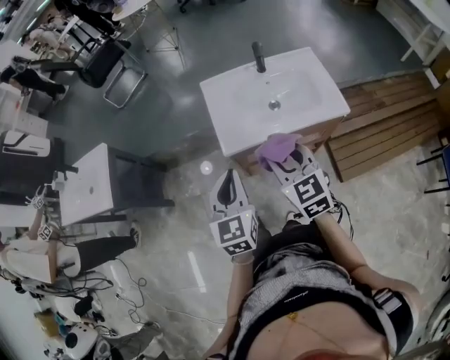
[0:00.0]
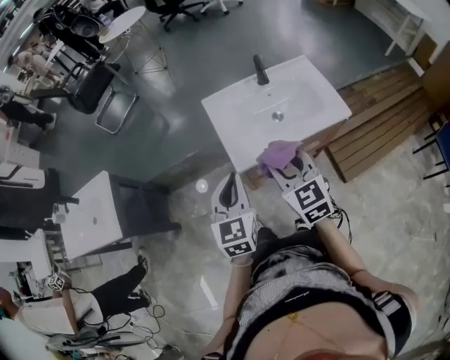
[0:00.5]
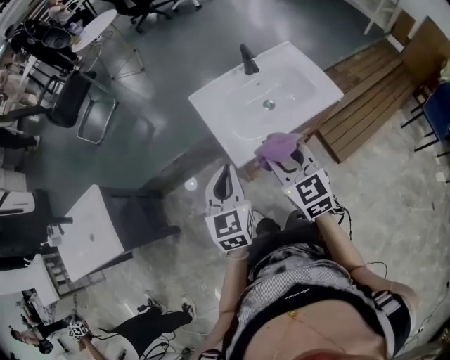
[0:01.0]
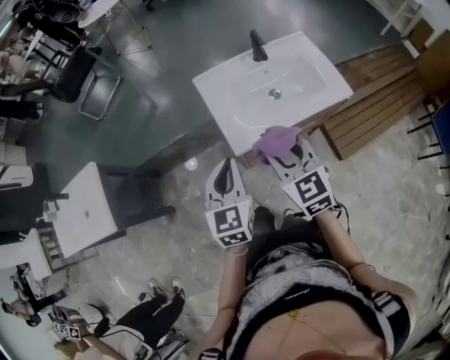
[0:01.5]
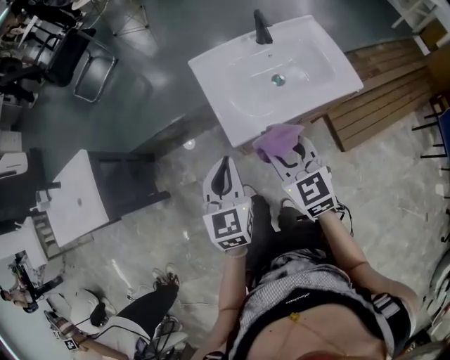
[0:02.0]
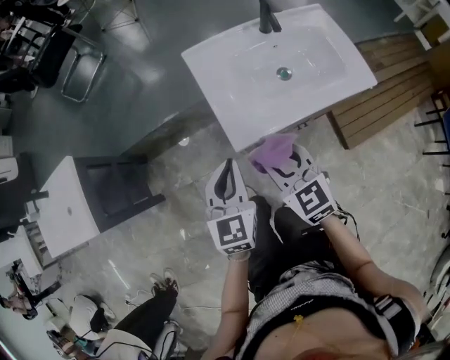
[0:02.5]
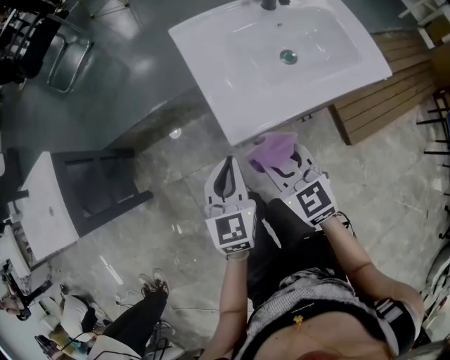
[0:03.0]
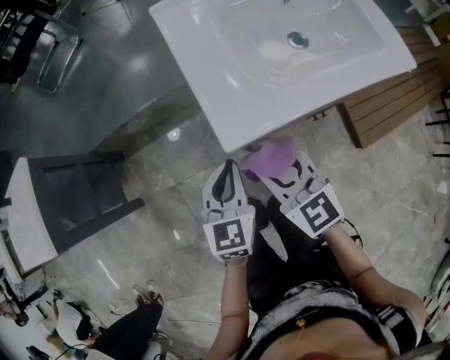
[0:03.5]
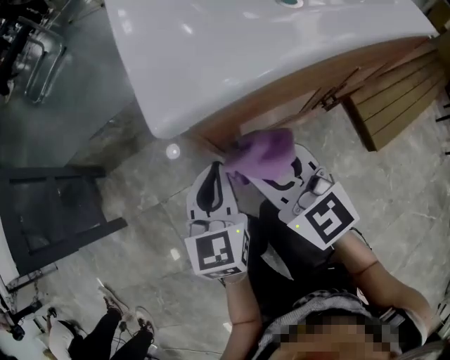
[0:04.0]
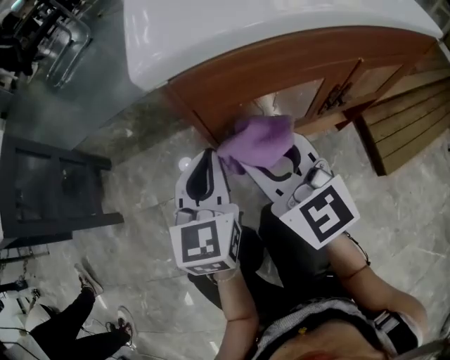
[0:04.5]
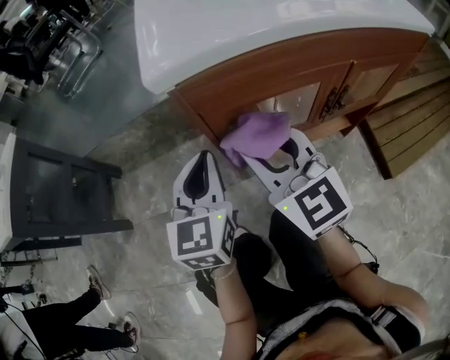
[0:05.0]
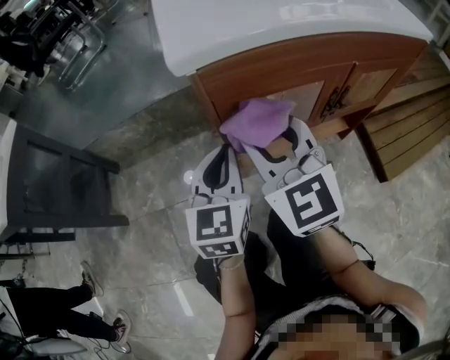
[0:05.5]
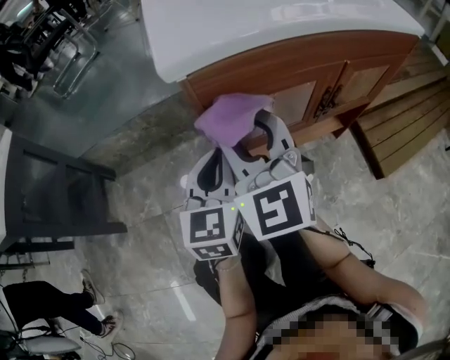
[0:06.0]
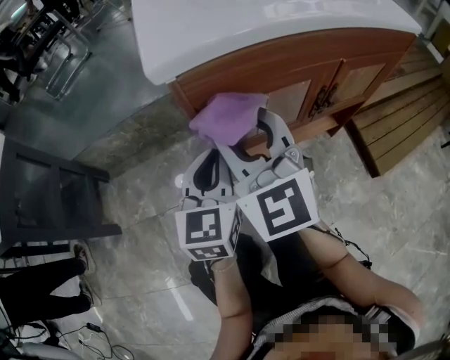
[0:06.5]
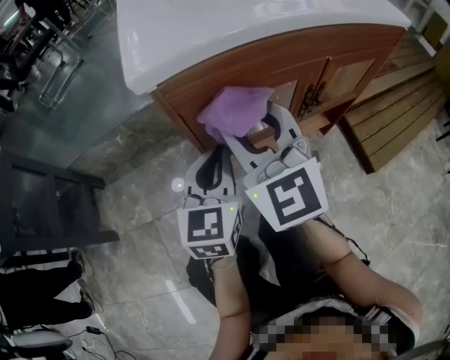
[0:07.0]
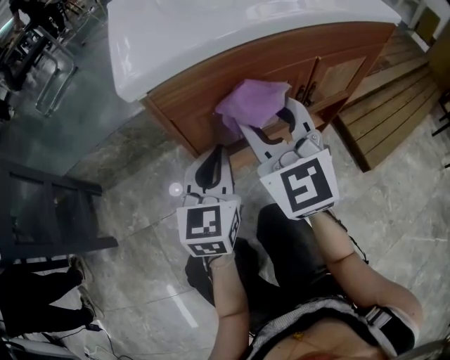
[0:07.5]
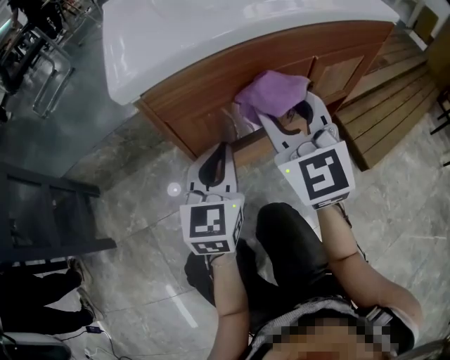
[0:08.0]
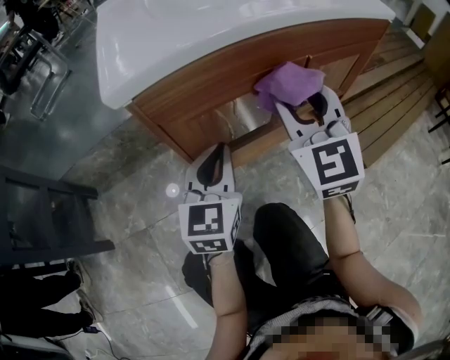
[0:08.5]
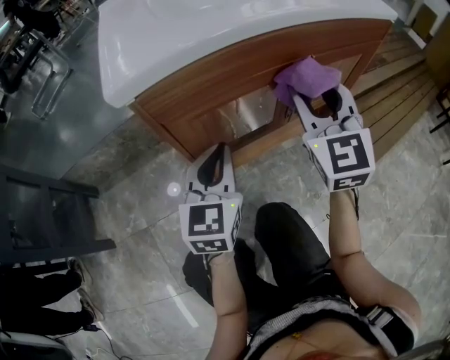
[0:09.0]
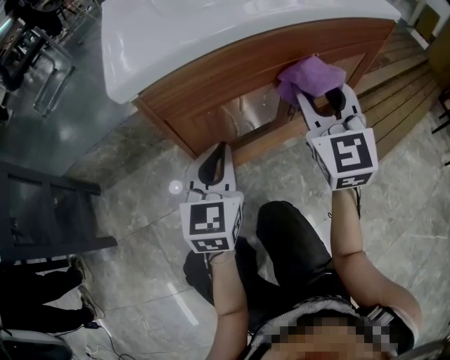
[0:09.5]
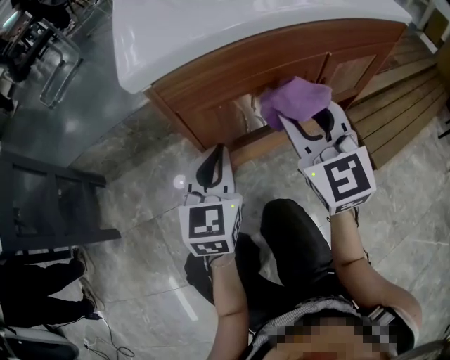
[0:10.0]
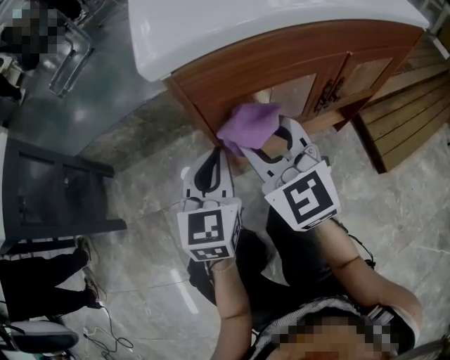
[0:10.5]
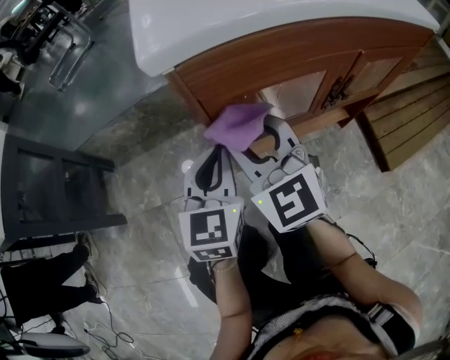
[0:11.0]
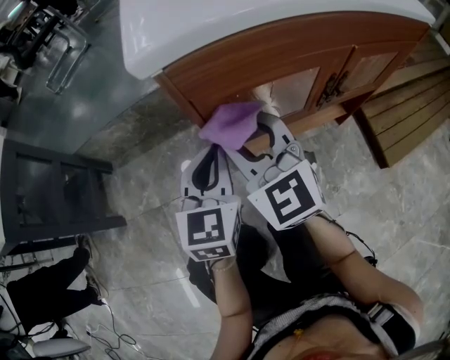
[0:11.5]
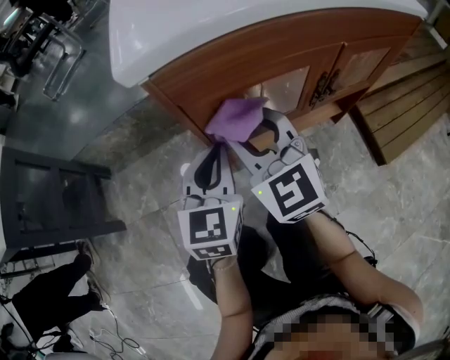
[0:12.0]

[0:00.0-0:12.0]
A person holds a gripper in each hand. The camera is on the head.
0:00.0 to 0:02.0: The left gripper heads forward, downward and to the left, covering approximately 10 cm, while the right gripper shifts roughly 10 cm to the left and downward.
0:02.0 to 0:04.0: Both grippers move downward, approximately 40 cm.
0:04.0 to 0:06.0: The right gripper shifts by about 5 cm, and changes its angle by roughly 30 degrees.
0:06.0 to 0:08.0: The left gripper goes about 5 cm to the right. The right gripper moves to the right, about 15 cm.
0:08.0 to 0:10.0: The right gripper reaches approximately 10 cm to the right, then returns.
0:10.0 to 0:12.0: The right gripper heads to the left, covering approximately 10 cm.

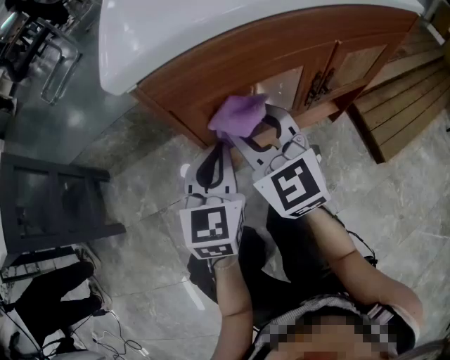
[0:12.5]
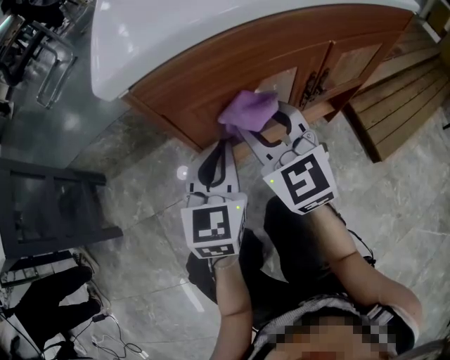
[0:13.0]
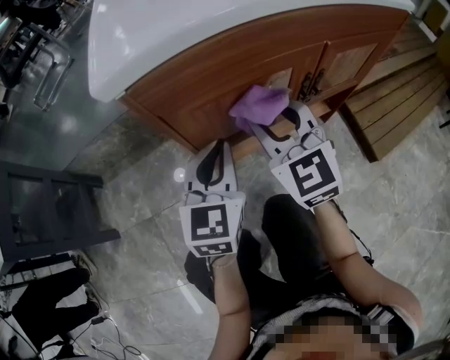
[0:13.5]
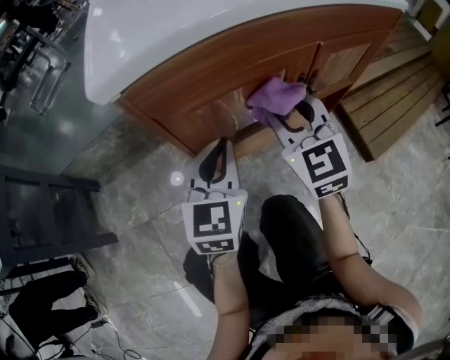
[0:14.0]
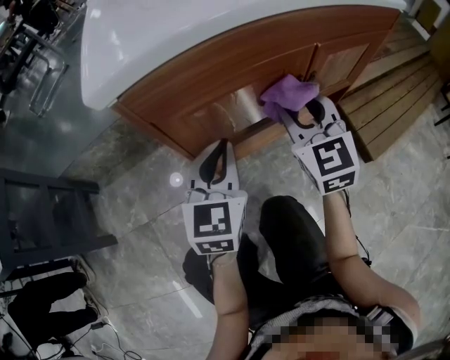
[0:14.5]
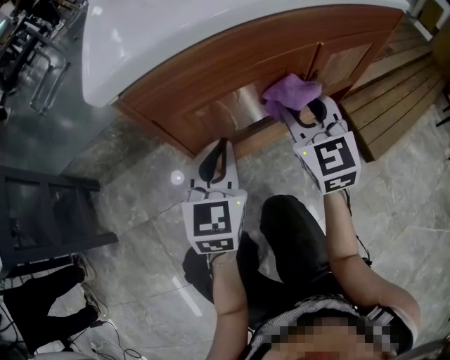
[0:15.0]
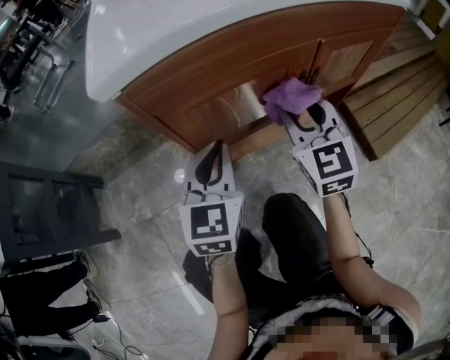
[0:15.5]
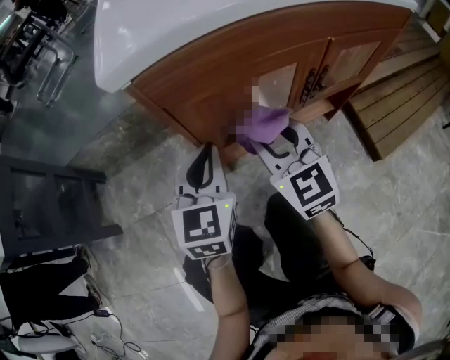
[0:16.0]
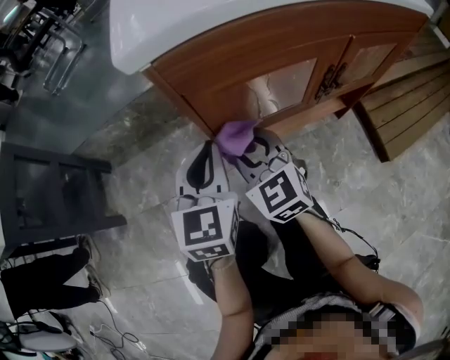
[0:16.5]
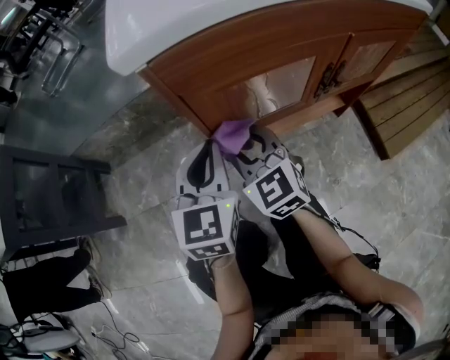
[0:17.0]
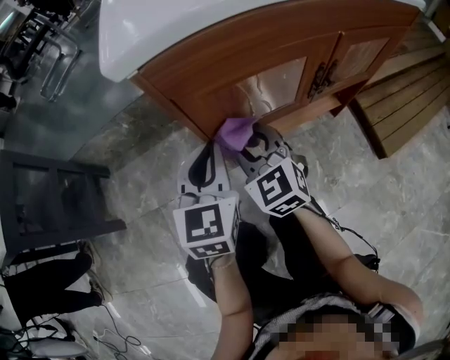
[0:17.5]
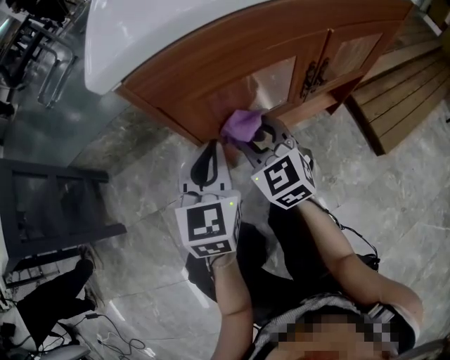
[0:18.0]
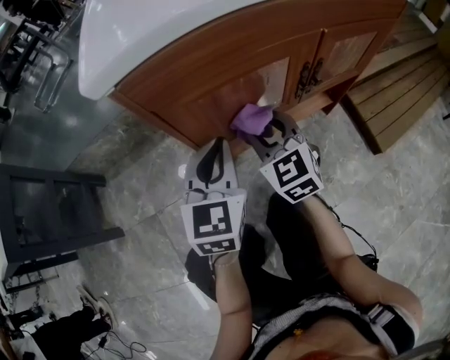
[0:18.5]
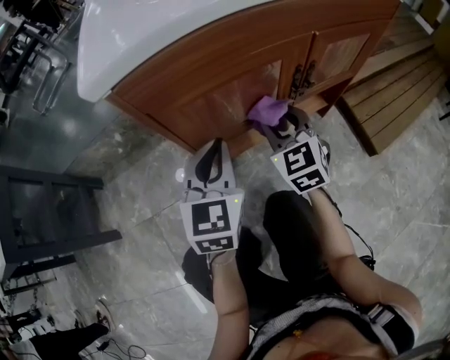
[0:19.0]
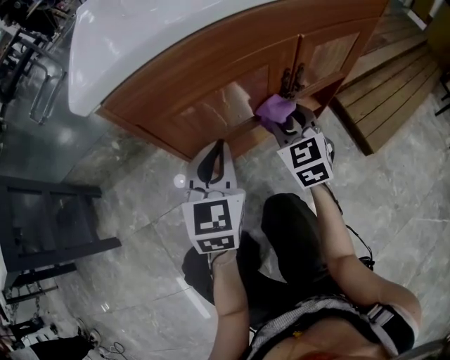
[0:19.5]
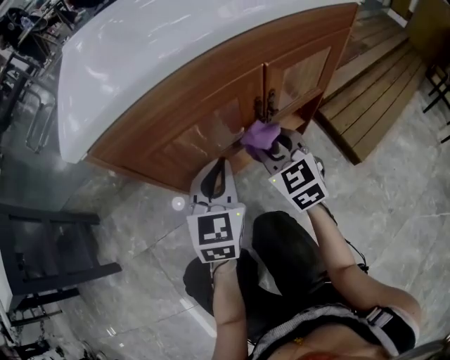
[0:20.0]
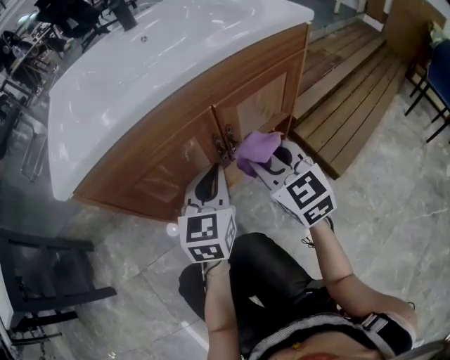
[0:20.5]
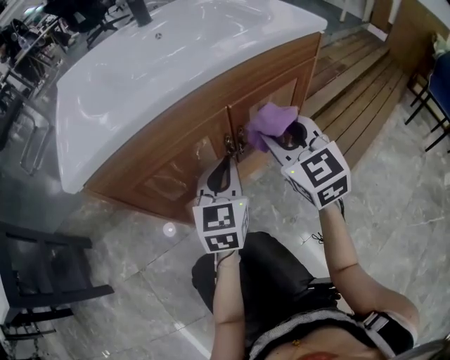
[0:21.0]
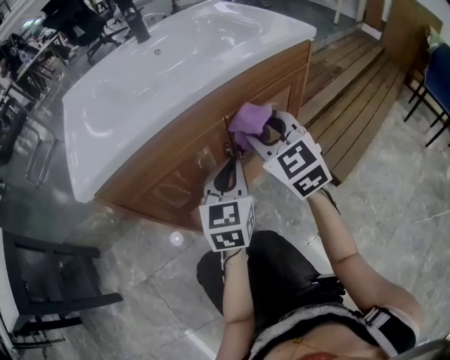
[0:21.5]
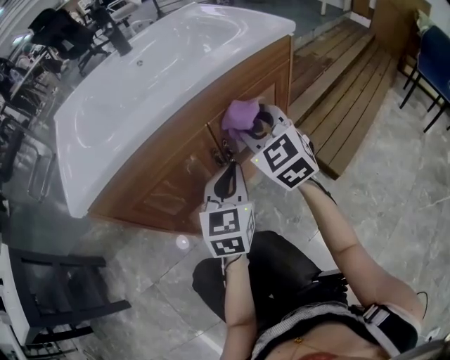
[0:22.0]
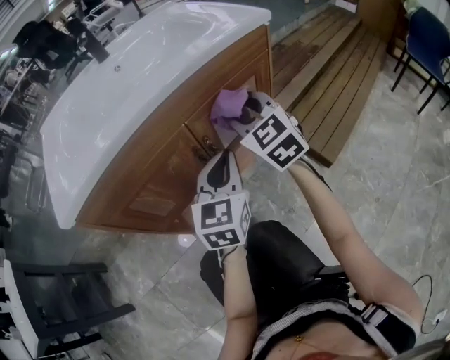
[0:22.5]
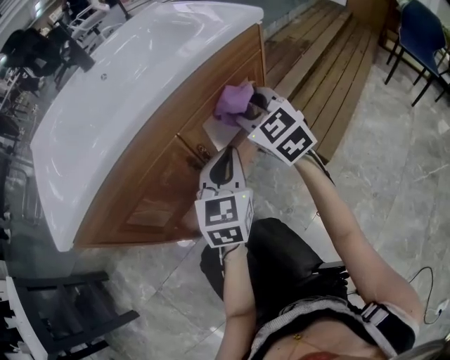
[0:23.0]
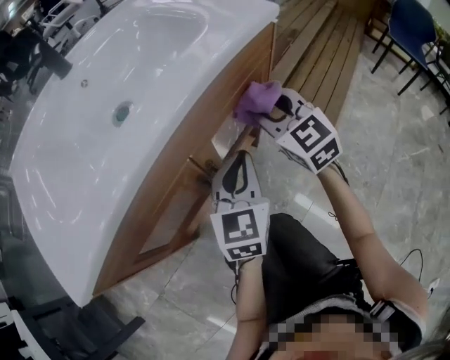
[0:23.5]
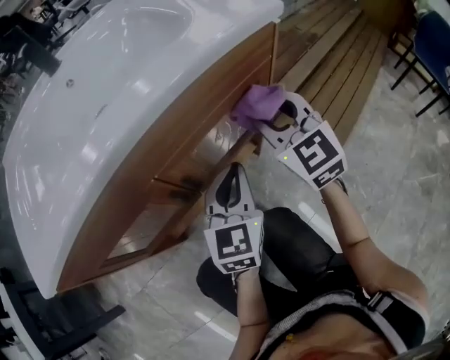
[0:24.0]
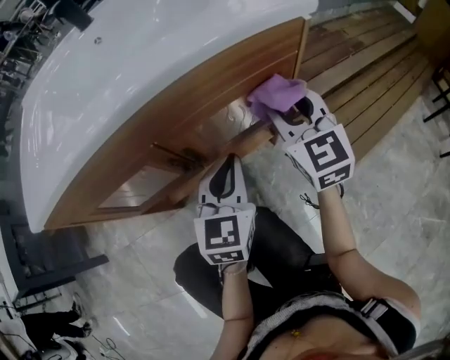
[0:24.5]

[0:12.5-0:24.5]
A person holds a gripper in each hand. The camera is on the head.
0:12.5 to 0:14.5: The right gripper moves to the right, about 15 cm.
0:14.5 to 0:16.5: The left gripper heads to the left, covering approximately 10 cm. The right gripper heads to the left and downward, covering about 20 cm, and changes its angle by some 20 degrees.
0:16.5 to 0:18.5: The right gripper shifts approximately 10 cm to the right. The left gripper shifts some 5 cm to the right.
0:18.5 to 0:20.5: The right gripper is displaced to the right and upward by some 20 cm; the left gripper shifts about 15 cm to the right.
0:20.5 to 0:22.5: The right gripper moves forward and upward, roughly 10 cm; the left gripper travels to the right by approximately 10 cm.
0:22.5 to 0:24.5: The left gripper changes place by about 5 cm; the right gripper shifts approximately 10 cm to the right and forward.

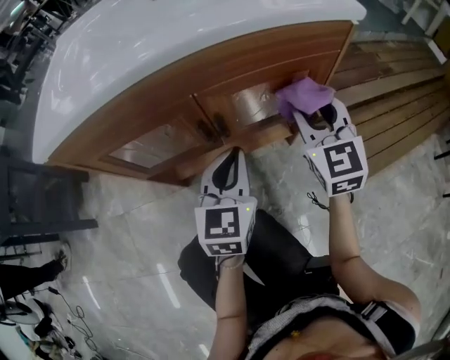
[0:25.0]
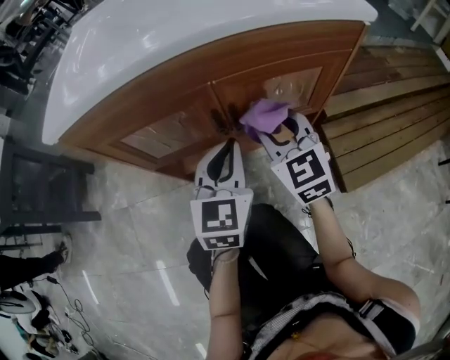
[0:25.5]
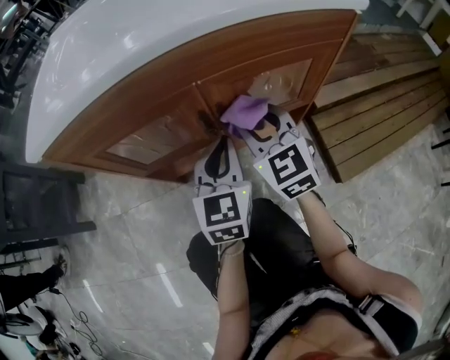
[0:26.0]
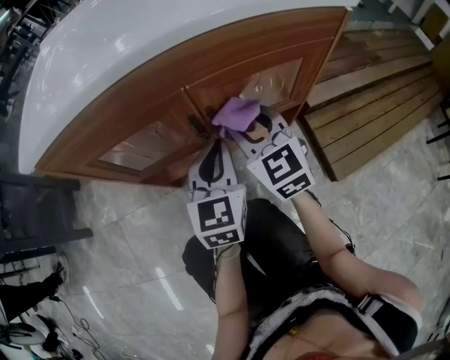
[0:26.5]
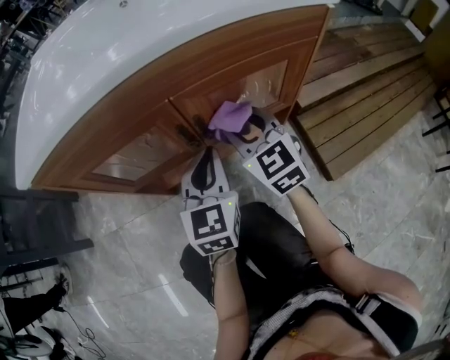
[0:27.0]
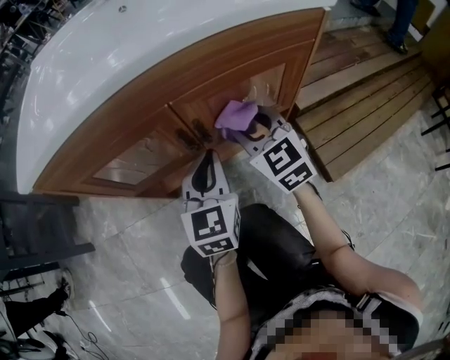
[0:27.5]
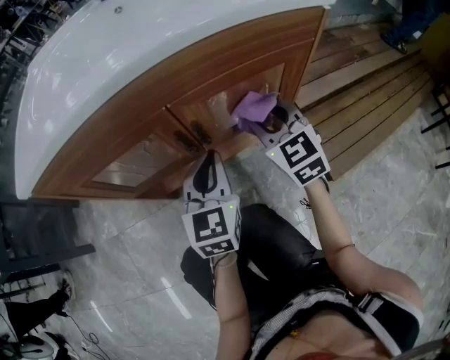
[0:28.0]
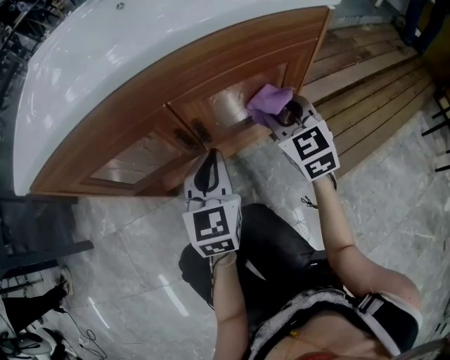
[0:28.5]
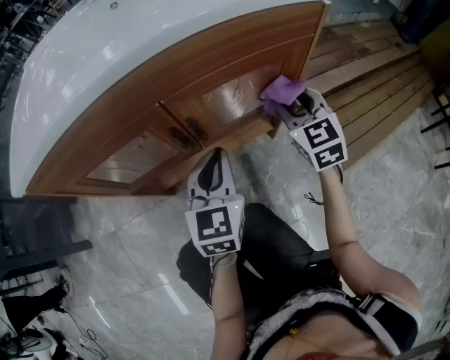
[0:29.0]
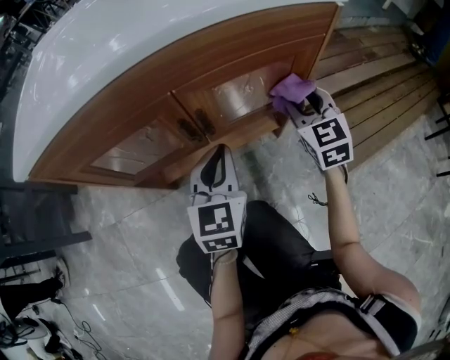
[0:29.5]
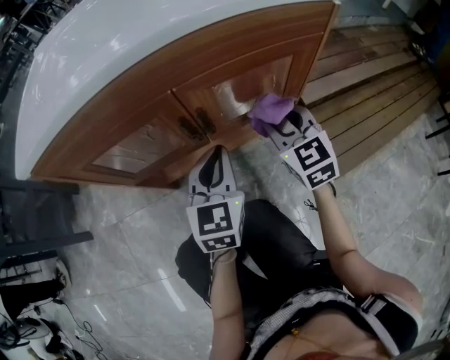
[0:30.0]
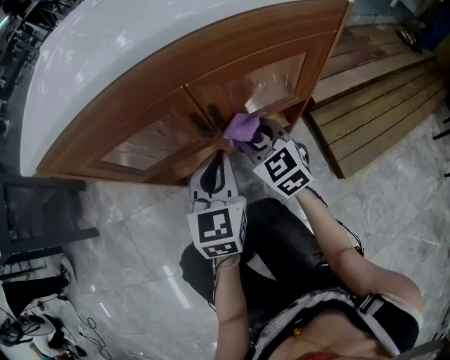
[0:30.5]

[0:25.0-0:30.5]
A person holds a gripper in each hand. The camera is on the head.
0:25.0 to 0:27.0: The right gripper travels to the left and downward by about 15 cm.
0:27.0 to 0:28.5: The right gripper heads to the right, covering about 10 cm.
0:28.5 to 0:30.5: The right gripper is displaced to the left and downward by approximately 15 cm.
